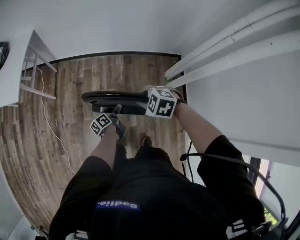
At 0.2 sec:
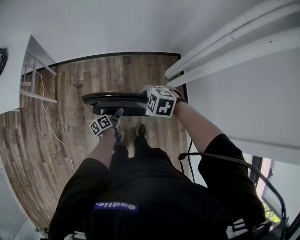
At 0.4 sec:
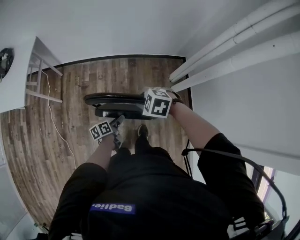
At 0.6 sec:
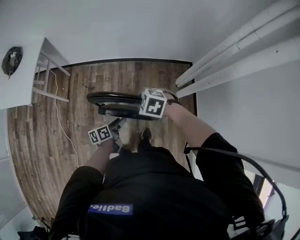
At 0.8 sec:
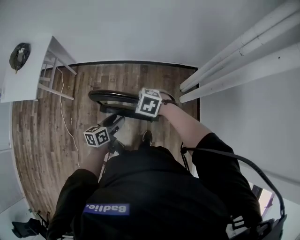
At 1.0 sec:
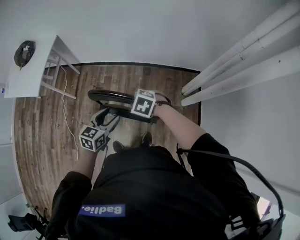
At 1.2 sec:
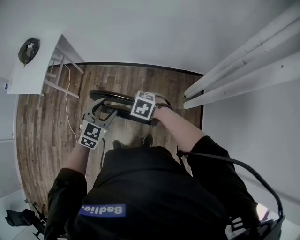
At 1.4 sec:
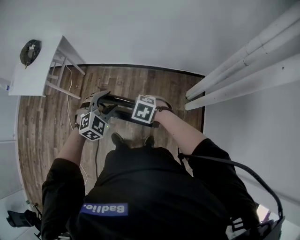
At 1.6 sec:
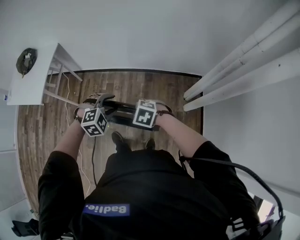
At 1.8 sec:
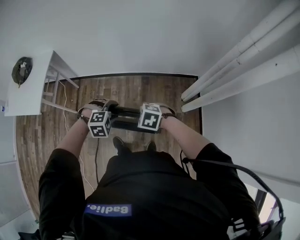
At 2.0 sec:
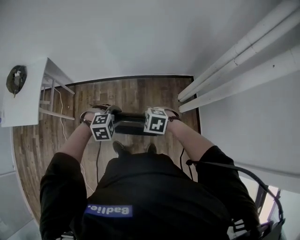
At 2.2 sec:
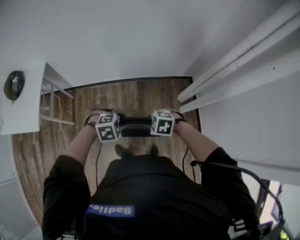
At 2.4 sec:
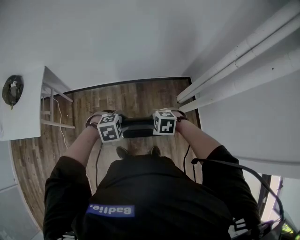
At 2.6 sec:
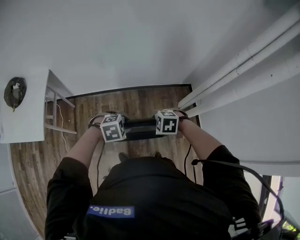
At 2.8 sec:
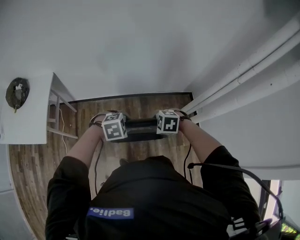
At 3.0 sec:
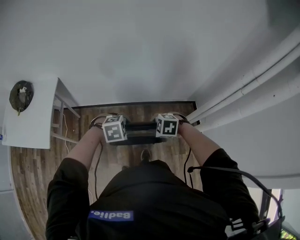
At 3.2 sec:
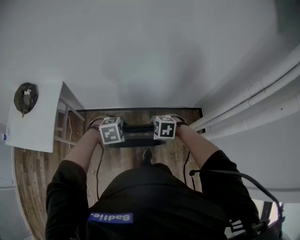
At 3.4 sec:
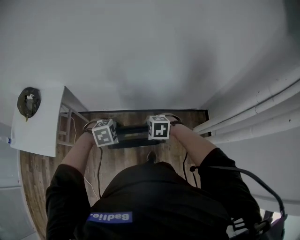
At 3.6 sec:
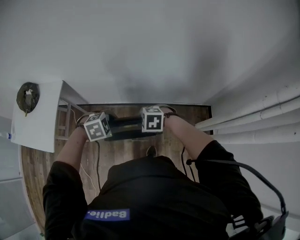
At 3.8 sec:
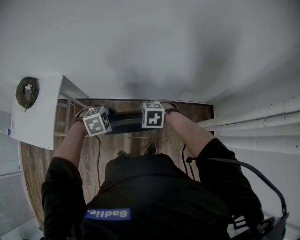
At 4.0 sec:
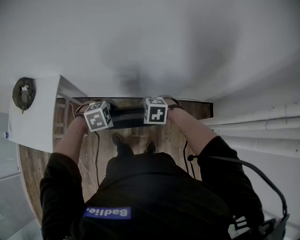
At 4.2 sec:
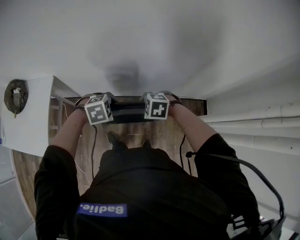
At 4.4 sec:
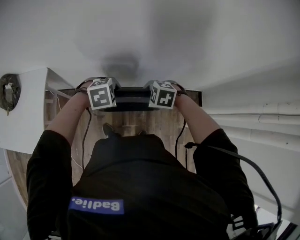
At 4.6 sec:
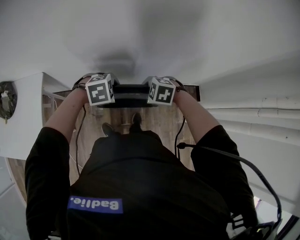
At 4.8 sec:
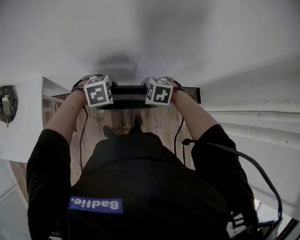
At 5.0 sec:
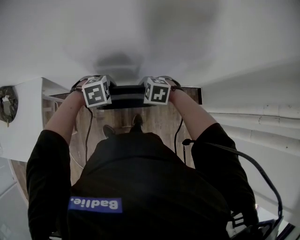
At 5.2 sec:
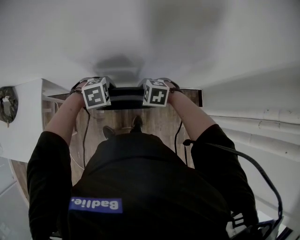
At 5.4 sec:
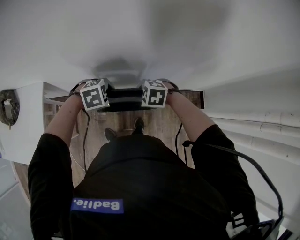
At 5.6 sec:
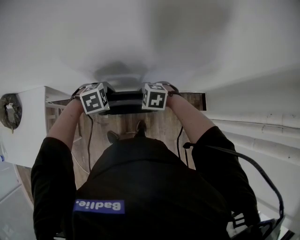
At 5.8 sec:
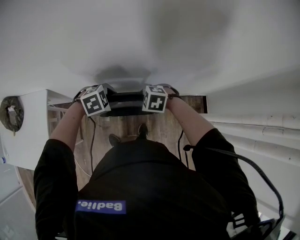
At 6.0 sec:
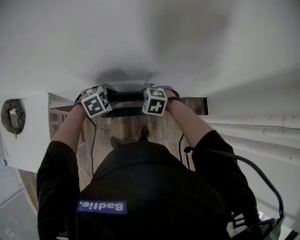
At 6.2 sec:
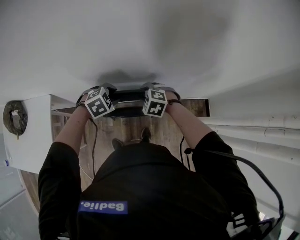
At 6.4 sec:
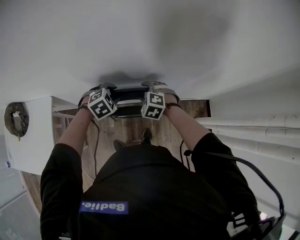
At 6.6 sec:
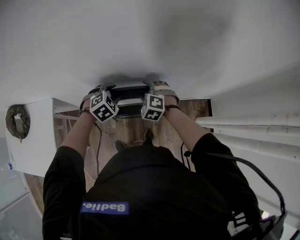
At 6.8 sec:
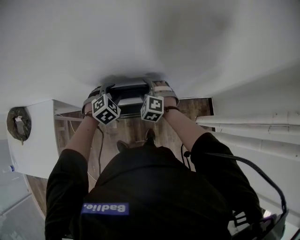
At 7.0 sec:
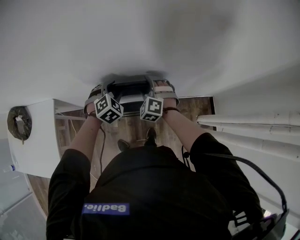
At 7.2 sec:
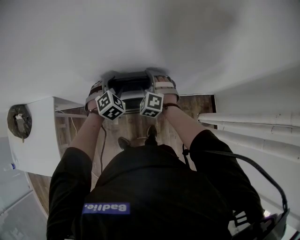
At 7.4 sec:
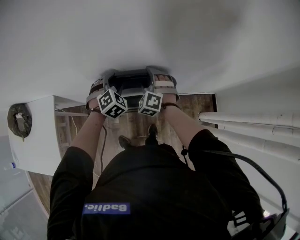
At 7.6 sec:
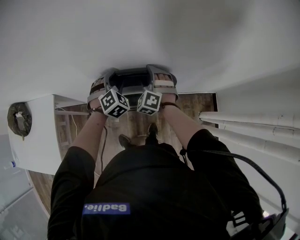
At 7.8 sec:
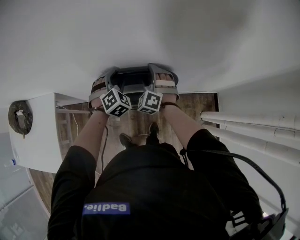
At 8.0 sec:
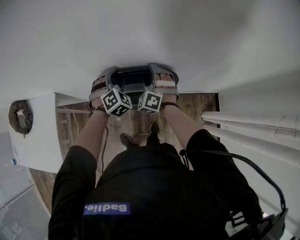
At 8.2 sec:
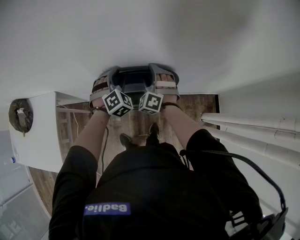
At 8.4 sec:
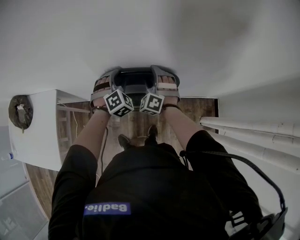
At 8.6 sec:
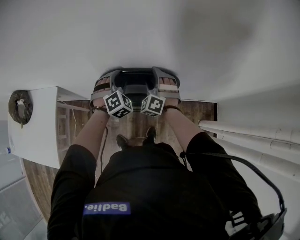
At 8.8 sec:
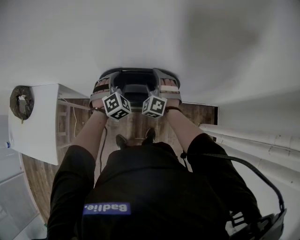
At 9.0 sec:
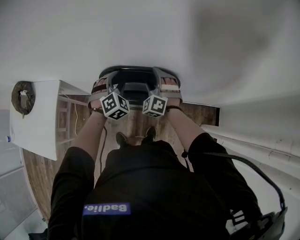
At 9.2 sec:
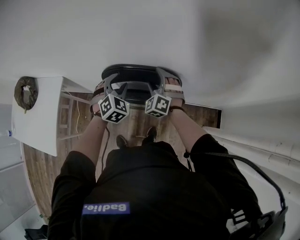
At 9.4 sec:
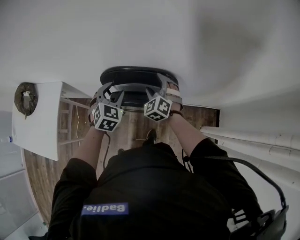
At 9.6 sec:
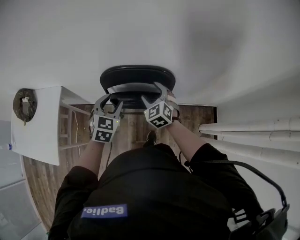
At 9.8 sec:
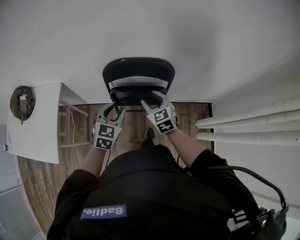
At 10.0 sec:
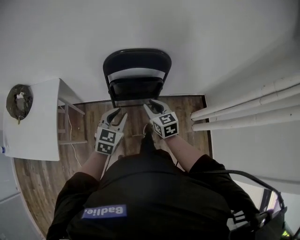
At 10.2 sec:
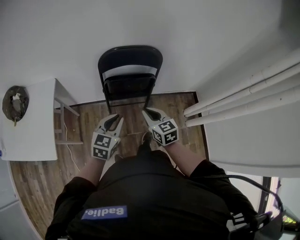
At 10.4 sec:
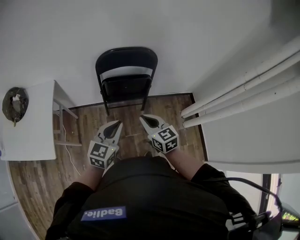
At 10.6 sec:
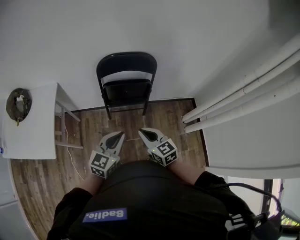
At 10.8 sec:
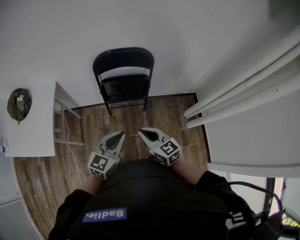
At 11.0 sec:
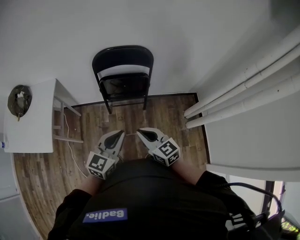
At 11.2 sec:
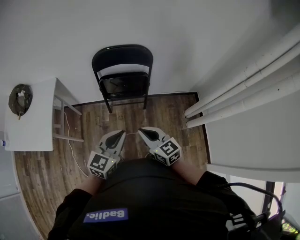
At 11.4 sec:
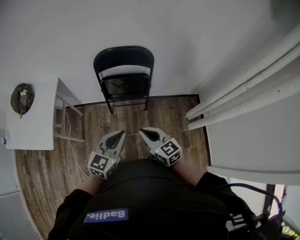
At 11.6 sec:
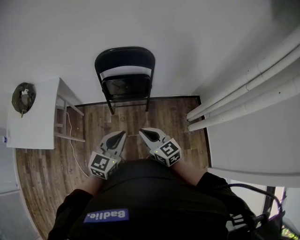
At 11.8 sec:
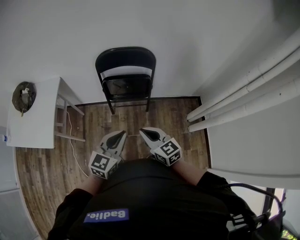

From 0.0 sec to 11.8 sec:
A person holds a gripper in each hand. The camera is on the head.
From 0.0 sec to 1.4 sec: The left gripper shifts some 30 cm upward, and twists roughly 120 degrees clockwise, seen from behind. Meanwhile the right gripper changes place by some 5 cm.
From 1.4 sec to 3.0 sec: The right gripper ends up roughly 20 cm from where it was; the left gripper shifts by approximately 20 cm, and changes its angle by some 40 degrees.
From 3.0 sec to 4.4 sec: The left gripper moves roughly 30 cm. Meanwhile the right gripper changes place by approximately 30 cm.
From 4.4 sec to 6.0 sec: The right gripper changes place by about 15 cm; the left gripper ends up approximately 15 cm from where it was.
From 6.0 sec to 7.4 sec: The left gripper shifts by about 10 cm, and turns by some 40 degrees, while the right gripper shifts by about 10 cm, rotates roughly 40 degrees, and opens up.
From 7.4 sec to 8.8 sec: There are only small adjustments of the grippers.
From 8.8 sec to 10.4 sec: The pair of grippers is taken backward, about 50 cm. The left gripper rotates some 70 degrees, and closes. Meanwhile the right gripper twists some 70 degrees clockwise, seen from behind, and closes its fingers.
From 10.4 sec to 11.8 sec: The left gripper goes some 15 cm to the right and backward. The right gripper travels backward and to the right by some 10 cm.

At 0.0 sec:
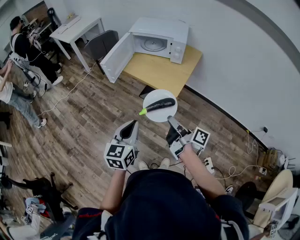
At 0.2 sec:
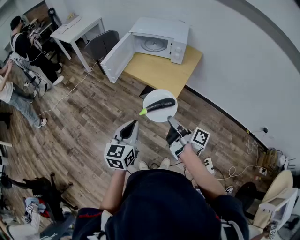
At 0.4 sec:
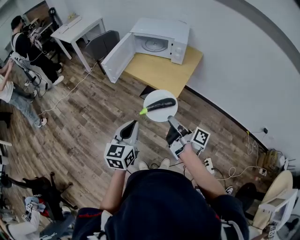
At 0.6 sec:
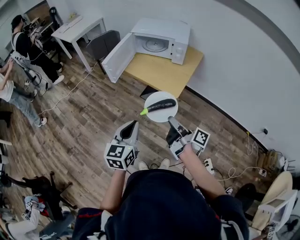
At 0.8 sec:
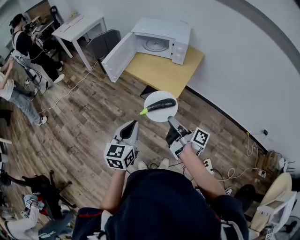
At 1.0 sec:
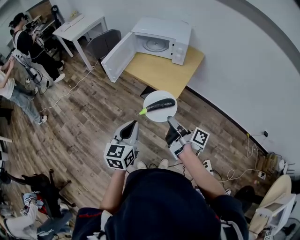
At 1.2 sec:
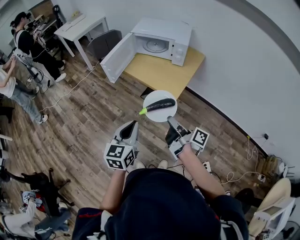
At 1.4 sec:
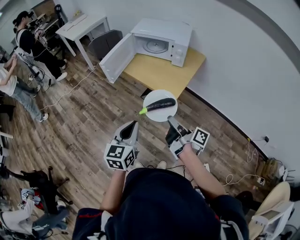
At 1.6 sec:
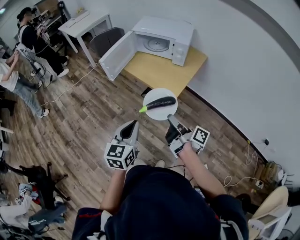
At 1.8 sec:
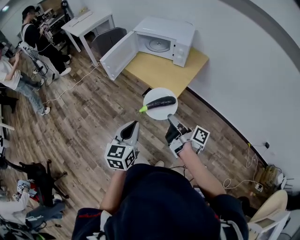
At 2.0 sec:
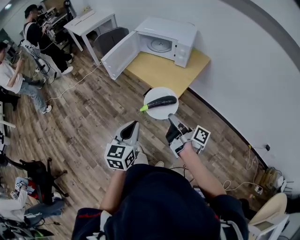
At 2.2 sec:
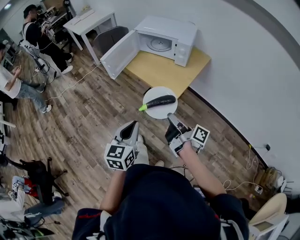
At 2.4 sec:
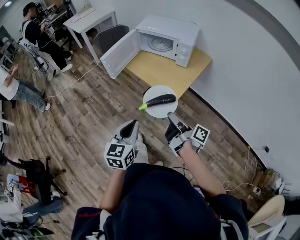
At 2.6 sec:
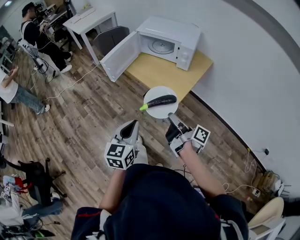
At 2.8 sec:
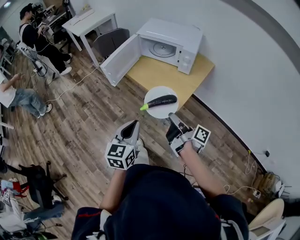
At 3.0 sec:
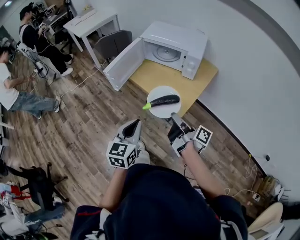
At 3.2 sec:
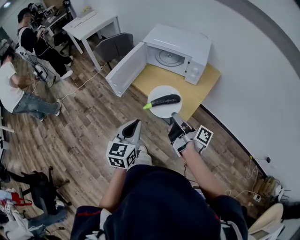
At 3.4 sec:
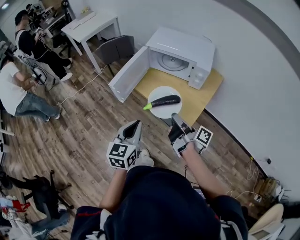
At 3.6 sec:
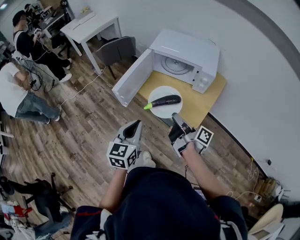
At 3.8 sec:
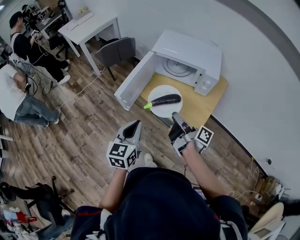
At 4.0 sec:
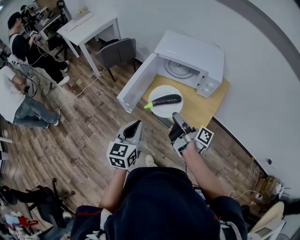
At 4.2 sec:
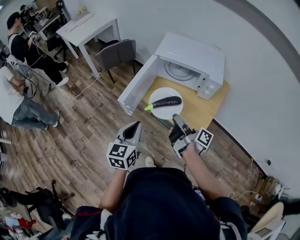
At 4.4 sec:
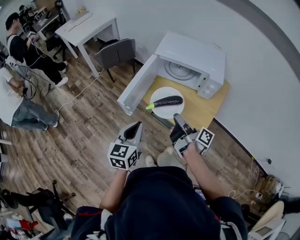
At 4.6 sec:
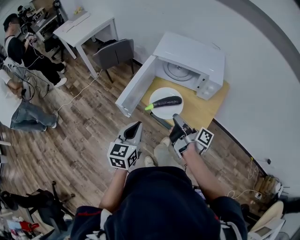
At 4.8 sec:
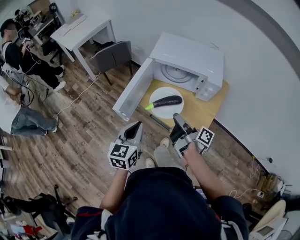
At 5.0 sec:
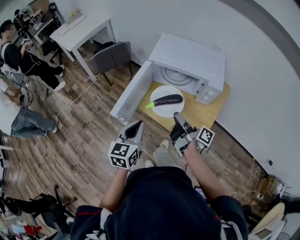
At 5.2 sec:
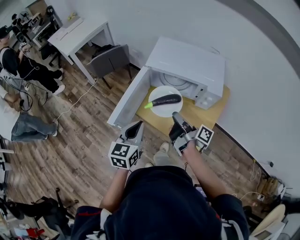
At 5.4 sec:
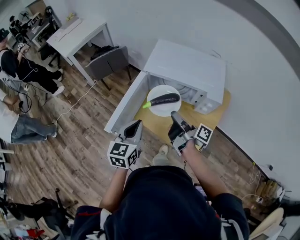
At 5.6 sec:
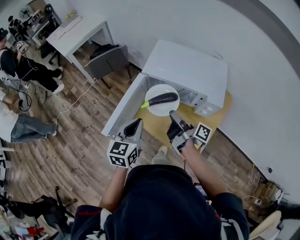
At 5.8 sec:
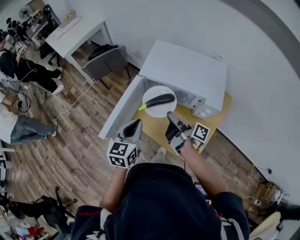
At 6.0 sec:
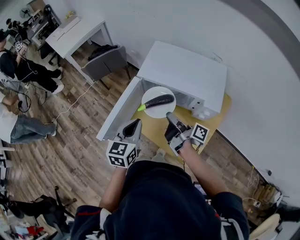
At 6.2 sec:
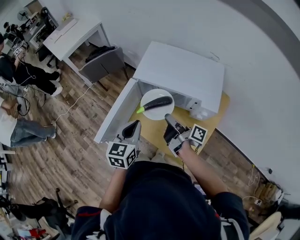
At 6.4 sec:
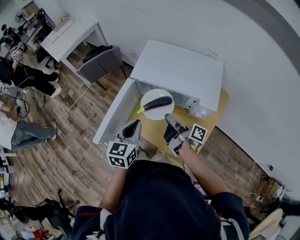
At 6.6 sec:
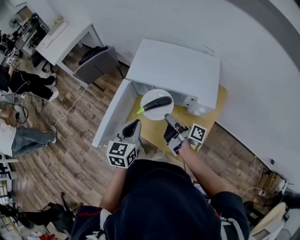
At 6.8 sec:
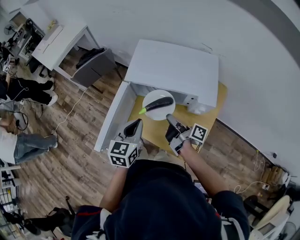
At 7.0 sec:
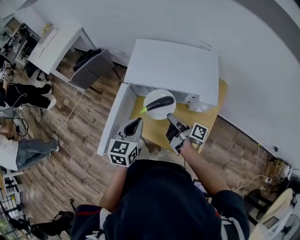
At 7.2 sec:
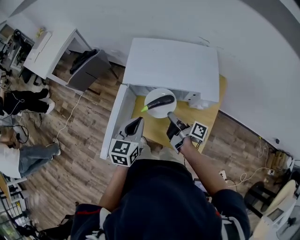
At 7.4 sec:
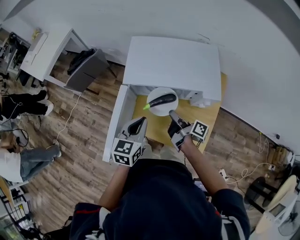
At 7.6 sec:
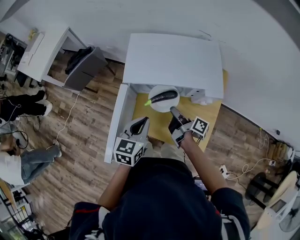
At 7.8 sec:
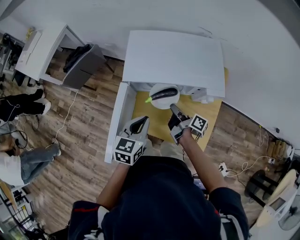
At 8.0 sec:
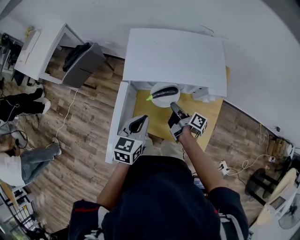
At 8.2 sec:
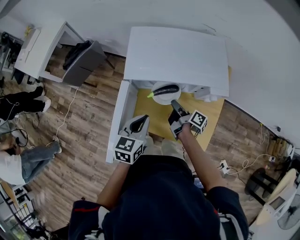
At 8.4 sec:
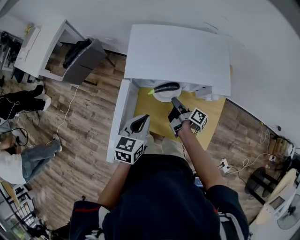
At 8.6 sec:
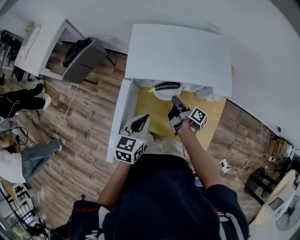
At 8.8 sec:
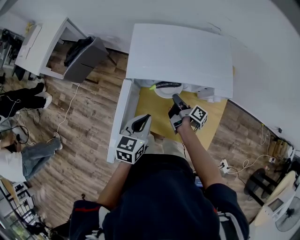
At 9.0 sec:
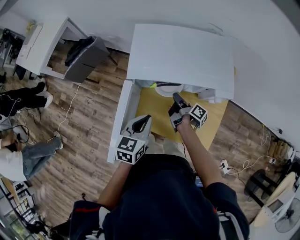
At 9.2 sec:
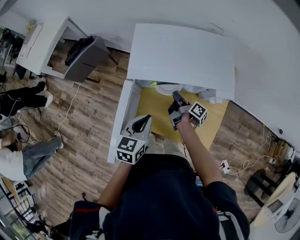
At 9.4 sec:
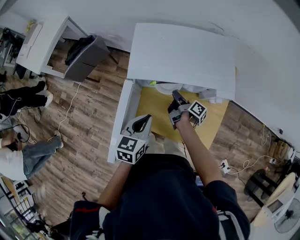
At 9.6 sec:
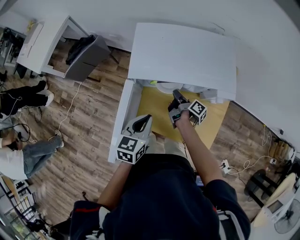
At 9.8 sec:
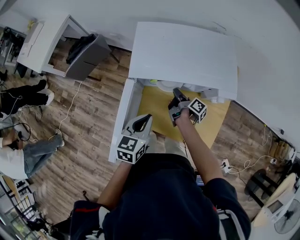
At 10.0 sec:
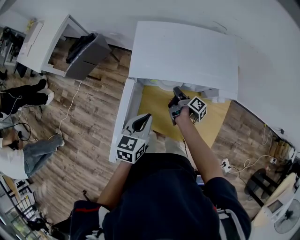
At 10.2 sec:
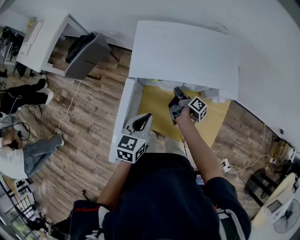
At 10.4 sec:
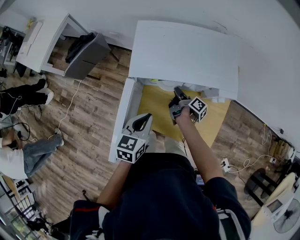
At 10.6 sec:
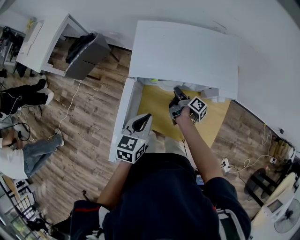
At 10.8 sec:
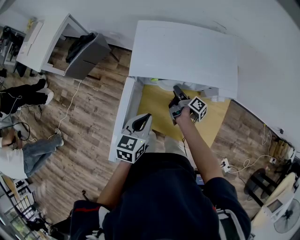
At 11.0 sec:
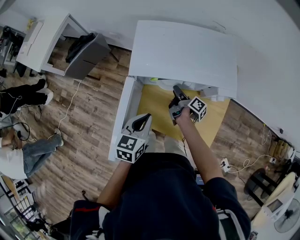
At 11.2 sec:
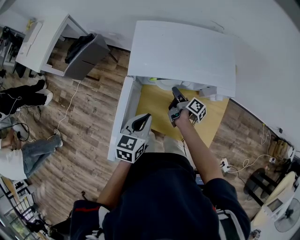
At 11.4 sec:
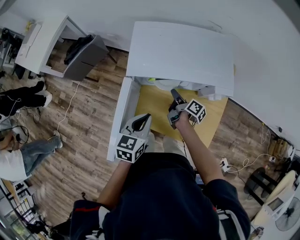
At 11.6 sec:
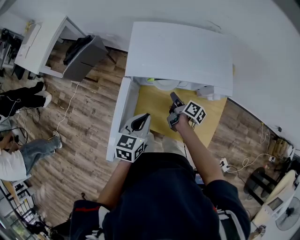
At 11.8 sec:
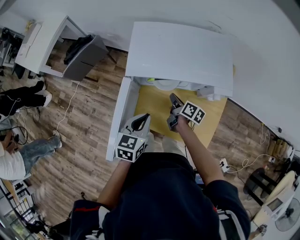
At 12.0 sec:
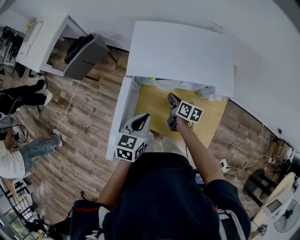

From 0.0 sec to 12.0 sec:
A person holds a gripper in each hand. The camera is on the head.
From 0.0 sec to 1.6 sec: The grippers both shift to the right by approximately 5 cm.
From 1.6 sec to 3.0 sec: The two grippers go about 15 cm forward.
From 3.0 sec to 4.4 sec: Both grippers move forward and to the left, some 20 cm.
From 4.4 sec to 6.0 sec: The left gripper travels forward and to the right by some 25 cm; the right gripper heads forward, covering approximately 20 cm.
From 6.0 sec to 7.6 sec: The left gripper shifts approximately 5 cm forward, and changes its angle by approximately 20 degrees. Meanwhile the right gripper moves downward, about 10 cm, and changes its angle by roughly 20 degrees.
From 7.6 sec to 9.0 sec: The right gripper goes some 10 cm downward and forward.
From 9.0 sec to 10.4 sec: The grippers stay close to where they were, moving slightly.
From 10.4 sec to 12.0 sec: The right gripper twists roughly 40 degrees counterclockwise, seen from behind, and opens, then closes once more.
